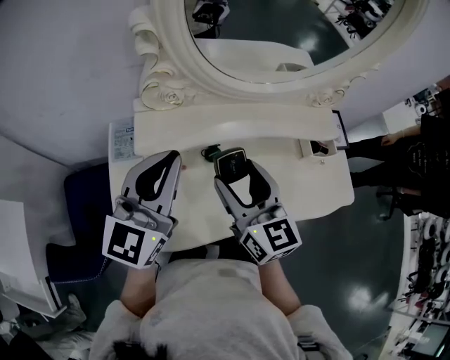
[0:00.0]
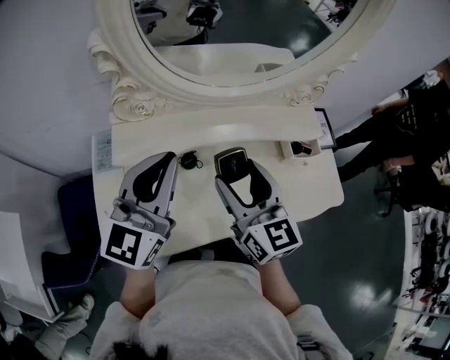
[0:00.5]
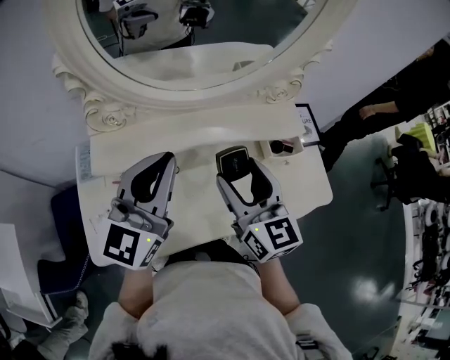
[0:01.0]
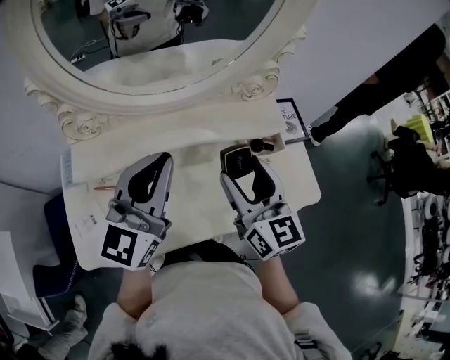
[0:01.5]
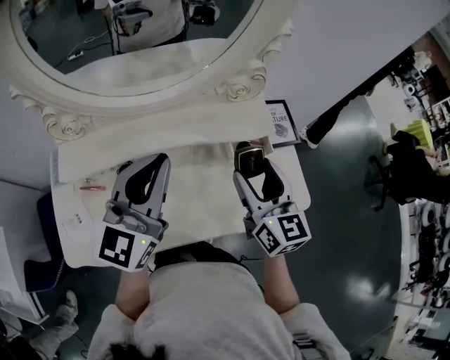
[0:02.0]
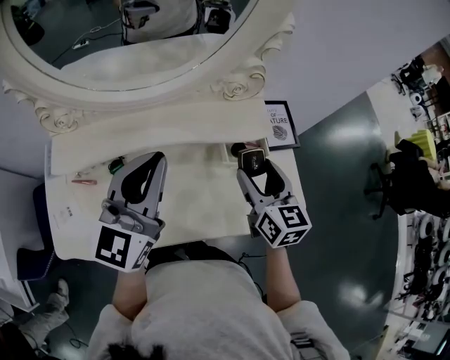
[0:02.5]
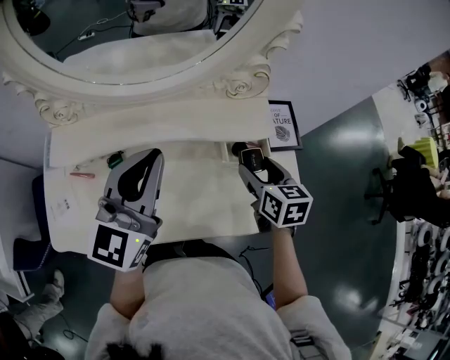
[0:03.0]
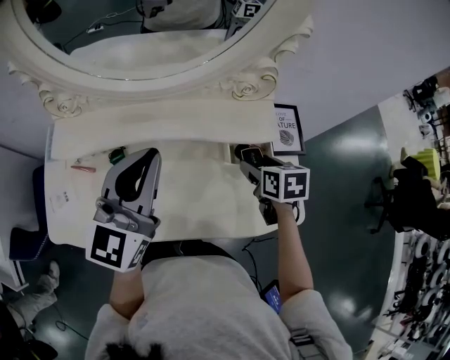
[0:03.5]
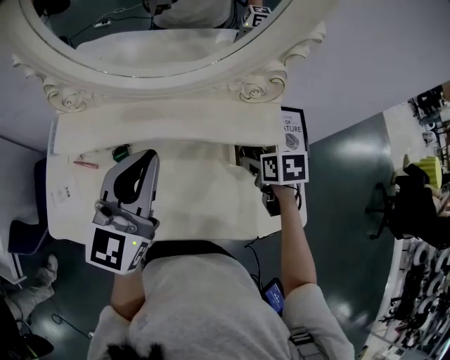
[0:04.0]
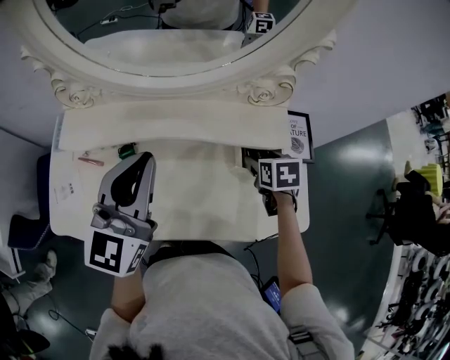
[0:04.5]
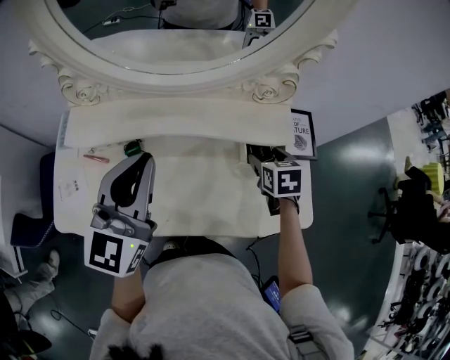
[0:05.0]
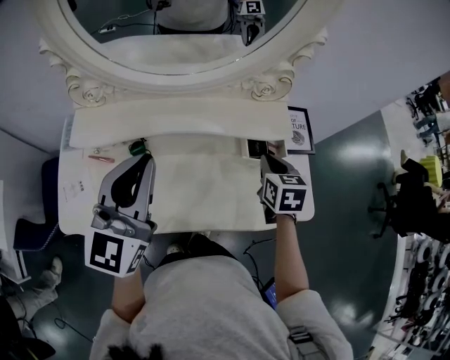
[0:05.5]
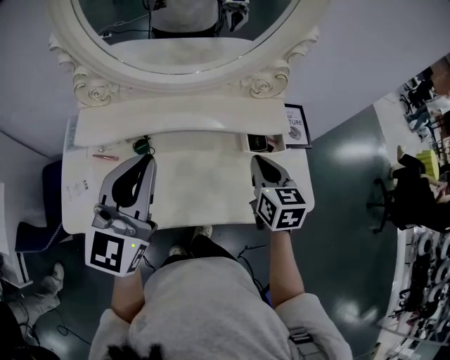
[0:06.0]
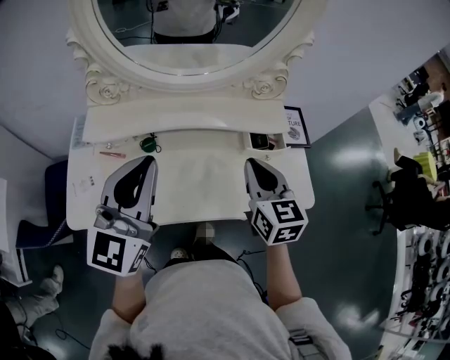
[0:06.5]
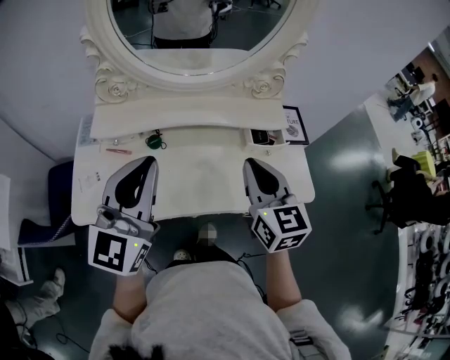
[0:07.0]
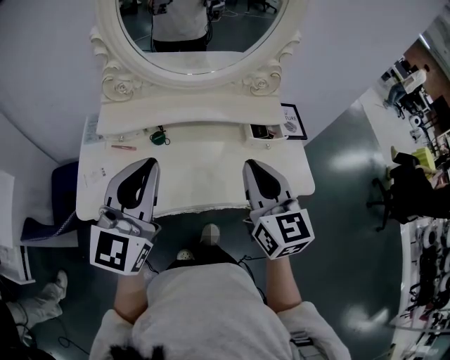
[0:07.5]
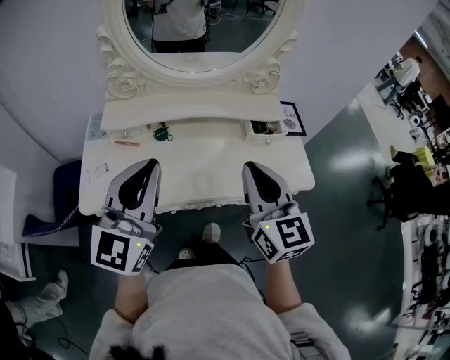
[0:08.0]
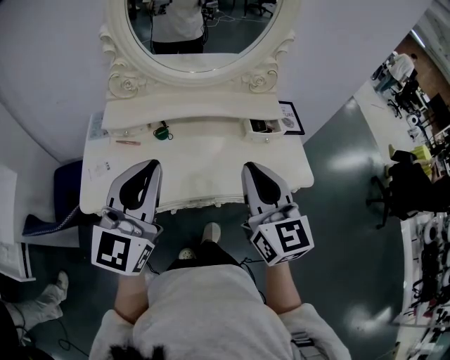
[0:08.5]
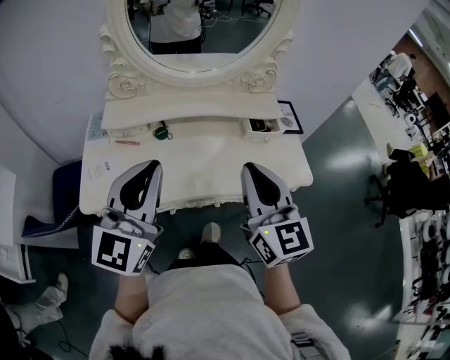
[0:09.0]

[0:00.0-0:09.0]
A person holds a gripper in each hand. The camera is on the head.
0:00.0 to 0:02.0: The two grippers go roughly 30 cm to the right.
0:02.0 to 0:04.5: The right gripper is displaced downward and forward by roughly 20 cm, and tilts its fingers roughly 50 degrees downward.
0:04.5 to 0:07.0: The right gripper heads upward, backward and to the left, covering approximately 30 cm, angles its fingers upward, by about 50 degrees, and closes, while the left gripper goes roughly 15 cm backward, to the left and upward.
0:07.0 to 0:09.0: The right gripper travels backward and upward by roughly 15 cm. The left gripper goes roughly 10 cm backward.

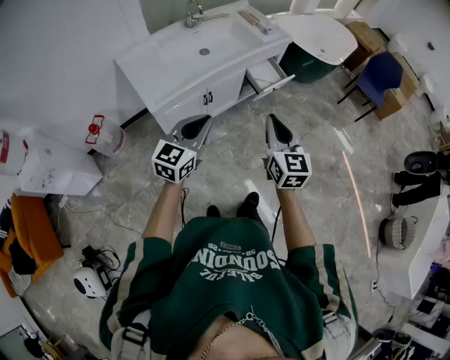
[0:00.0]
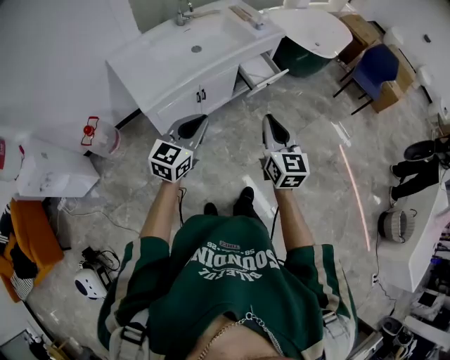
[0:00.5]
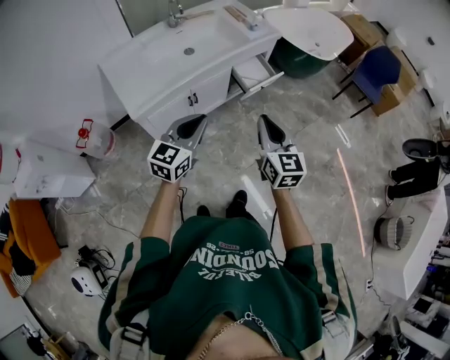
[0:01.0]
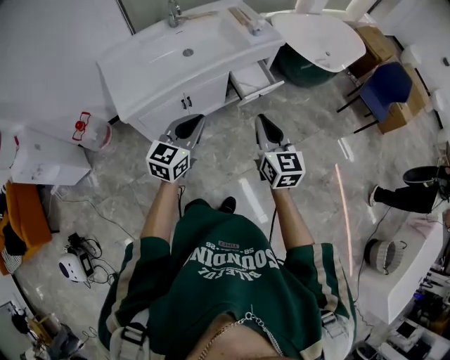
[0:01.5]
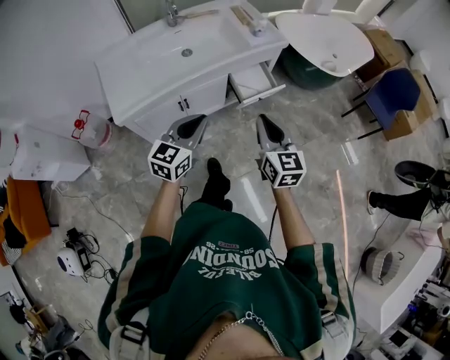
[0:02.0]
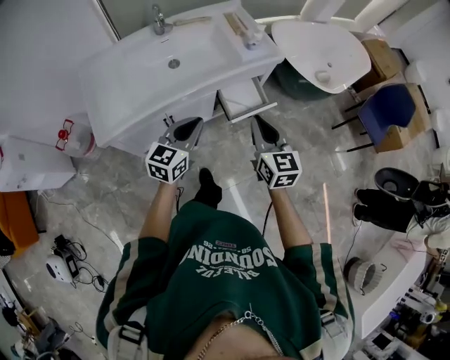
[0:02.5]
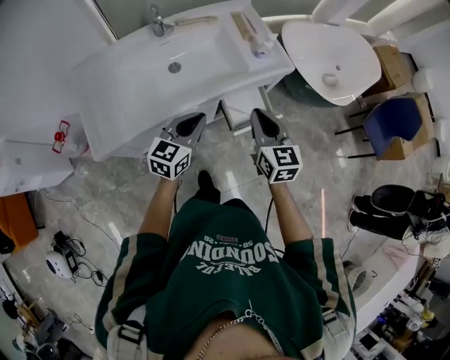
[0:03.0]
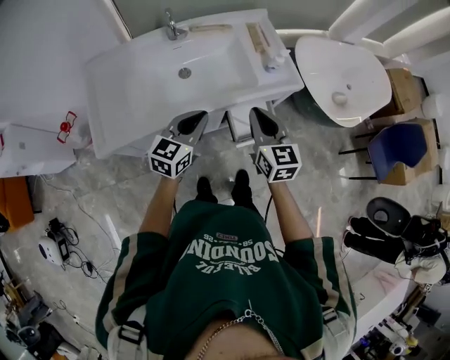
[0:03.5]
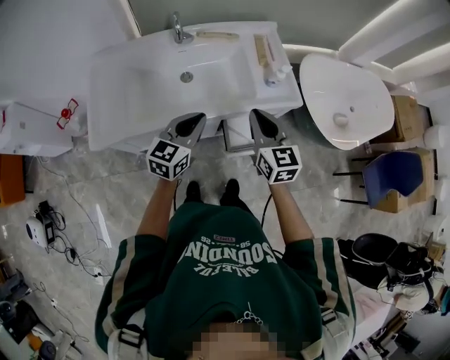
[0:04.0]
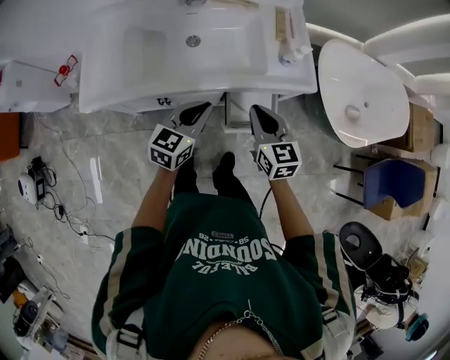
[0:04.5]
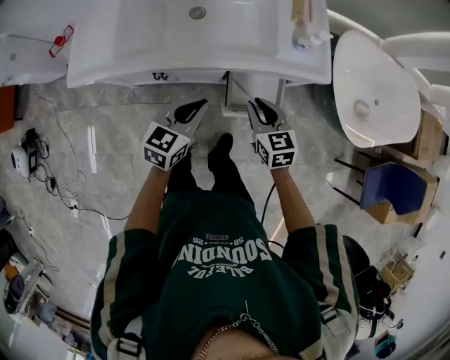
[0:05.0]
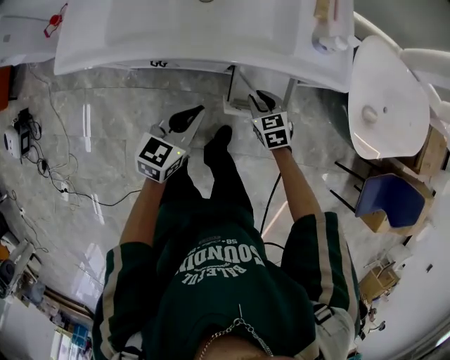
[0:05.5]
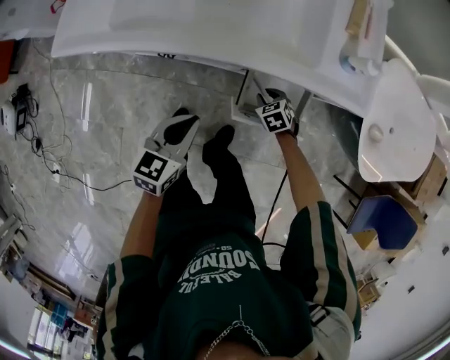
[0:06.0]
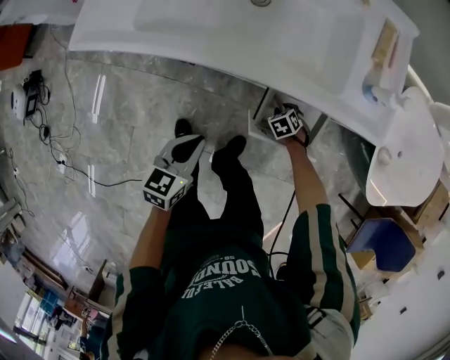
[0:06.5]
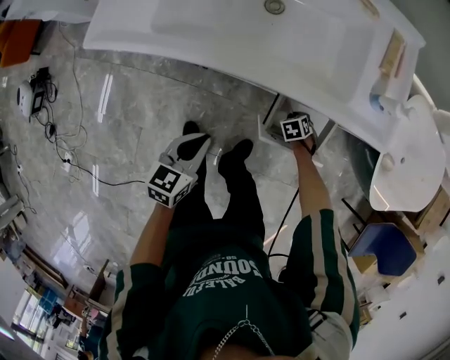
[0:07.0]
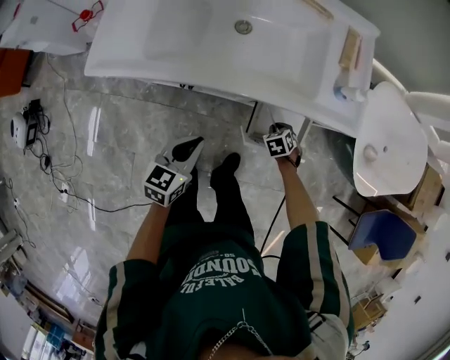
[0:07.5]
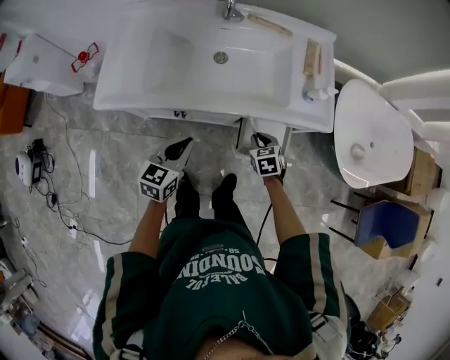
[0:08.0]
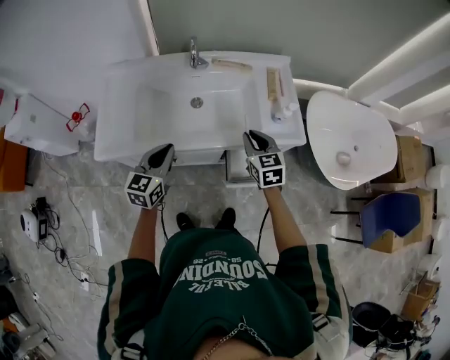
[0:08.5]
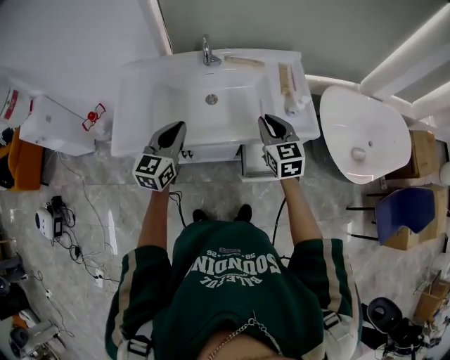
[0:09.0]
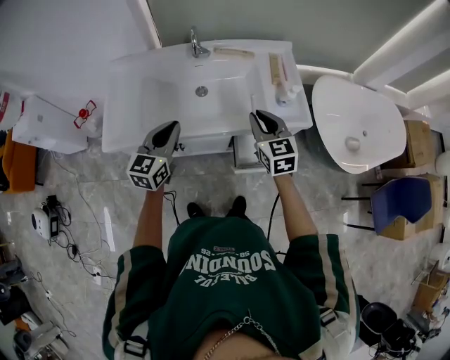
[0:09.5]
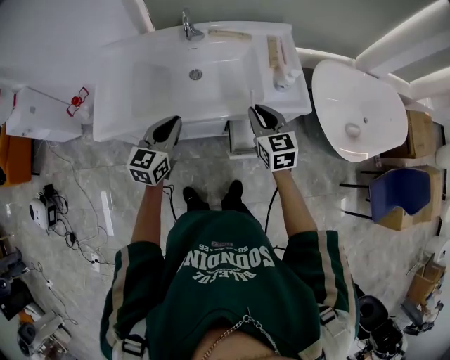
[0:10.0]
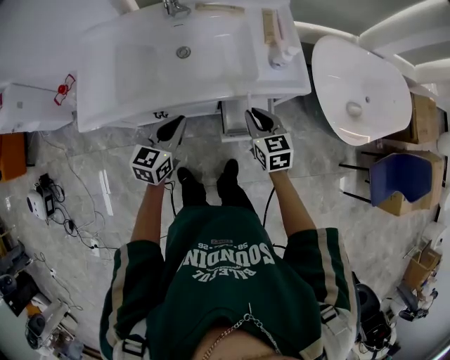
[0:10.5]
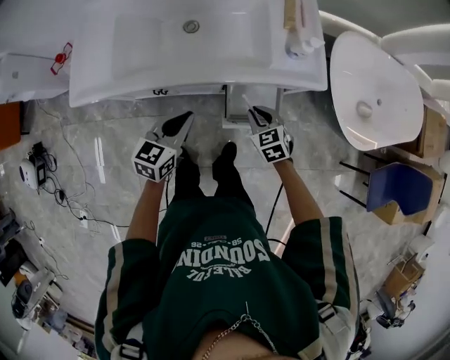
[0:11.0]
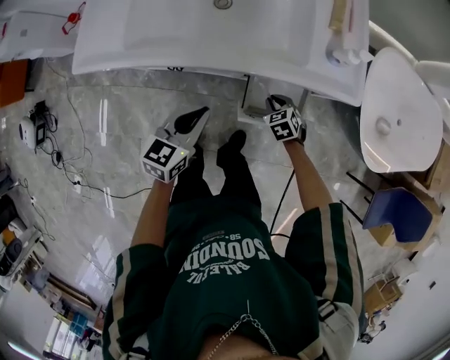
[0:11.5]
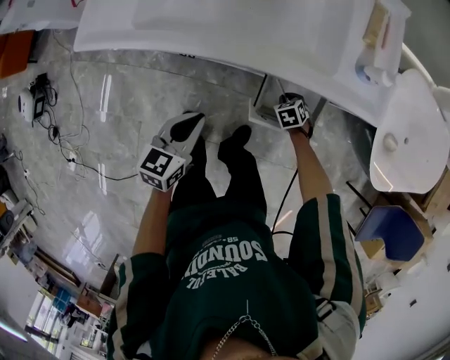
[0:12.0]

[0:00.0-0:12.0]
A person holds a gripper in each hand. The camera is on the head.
0:00.0 to 0:02.0: Both grippers move forward and to the right, some 25 cm.
0:02.0 to 0:04.0: The two grippers go some 35 cm forward. The right gripper turns by roughly 20 degrees.
0:04.0 to 0:06.0: The left gripper moves downward, roughly 25 cm, and changes its angle by roughly 30 degrees; the right gripper moves downward, approximately 50 cm, and tips its fingers downward by roughly 50 degrees.
0:06.0 to 0:08.0: The left gripper goes some 10 cm upward. The right gripper is displaced upward by approximately 20 cm, and changes its angle by about 20 degrees.
0:08.0 to 0:10.0: The left gripper moves upward and forward, roughly 15 cm. Meanwhile the right gripper goes approximately 25 cm upward, and tips its fingers upward by approximately 30 degrees.
0:10.0 to 0:12.0: The right gripper goes approximately 50 cm downward, and tilts its fingers some 50 degrees downward. Meanwhile the left gripper travels downward and backward by approximately 25 cm, and rotates about 20 degrees.

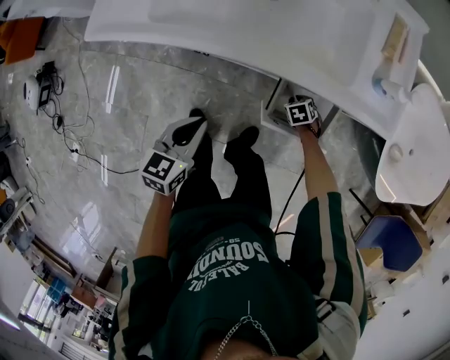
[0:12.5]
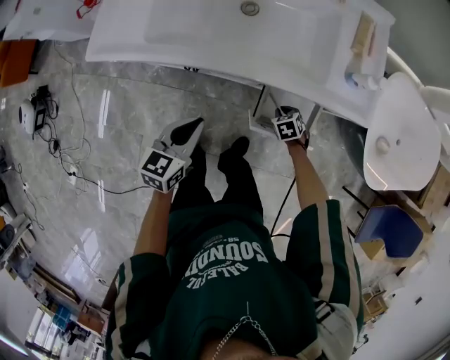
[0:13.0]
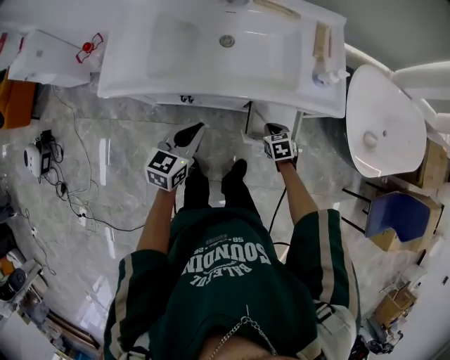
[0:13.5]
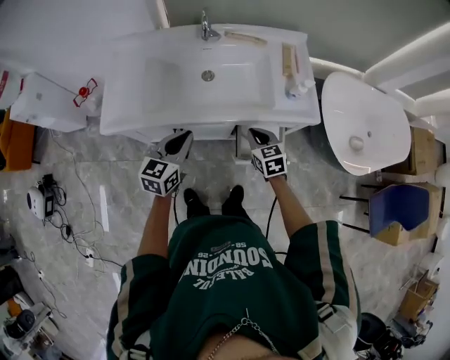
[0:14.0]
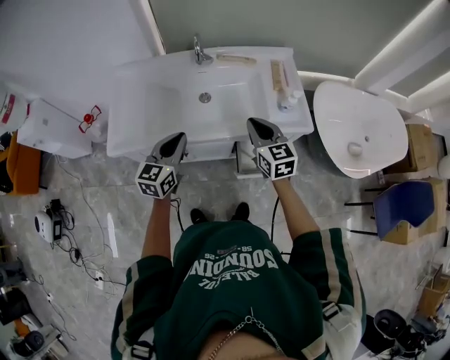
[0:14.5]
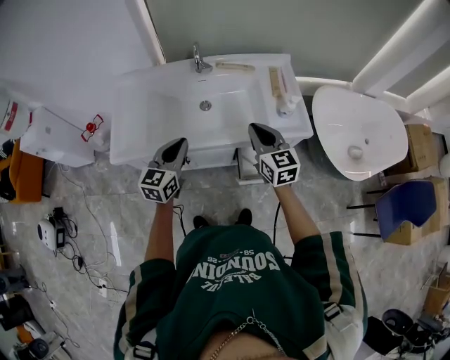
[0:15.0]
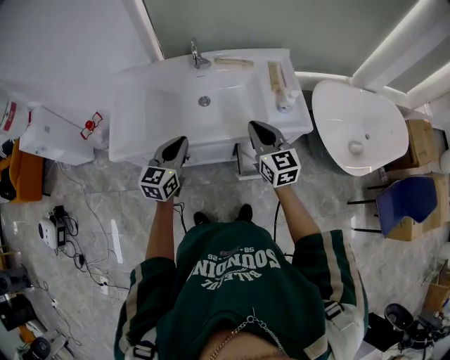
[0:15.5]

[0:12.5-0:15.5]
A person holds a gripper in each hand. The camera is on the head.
0:12.5 to 0:14.0: The right gripper goes approximately 40 cm upward, and tilts its fingers roughly 40 degrees upward. The left gripper heads upward, covering some 20 cm, and rotates approximately 20 degrees.
0:14.0 to 0:15.5: The right gripper is displaced upward by approximately 20 cm, and swivels approximately 30 degrees; the left gripper heads upward, covering some 5 cm.

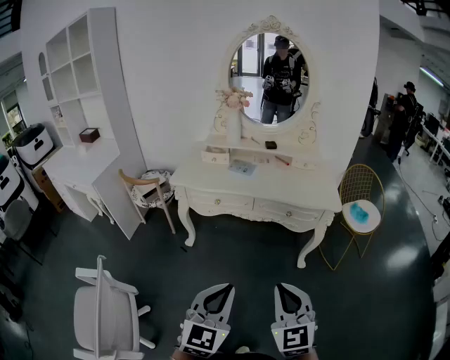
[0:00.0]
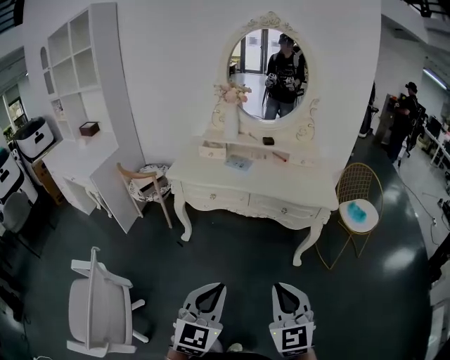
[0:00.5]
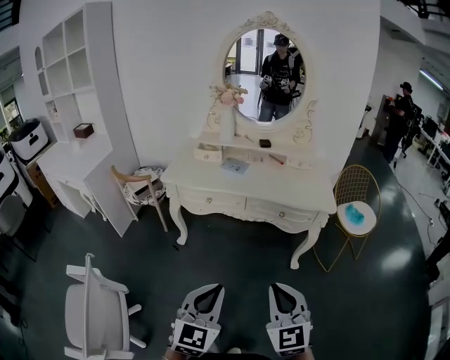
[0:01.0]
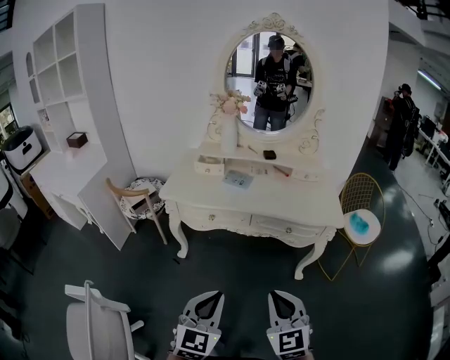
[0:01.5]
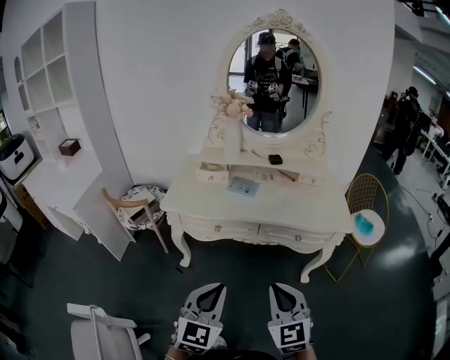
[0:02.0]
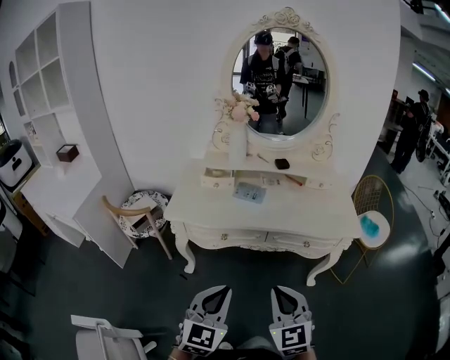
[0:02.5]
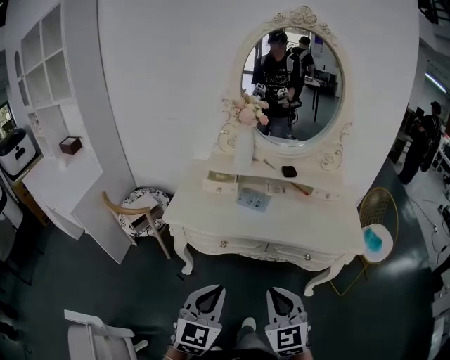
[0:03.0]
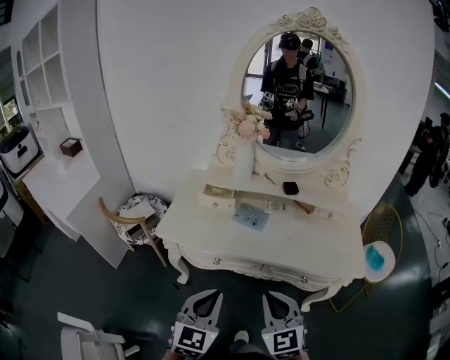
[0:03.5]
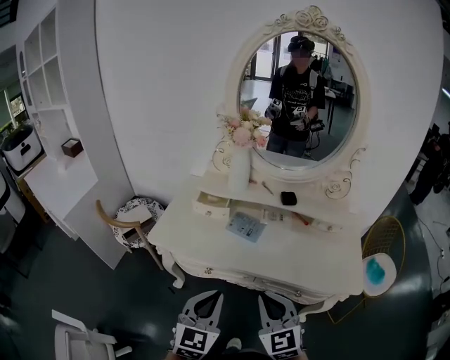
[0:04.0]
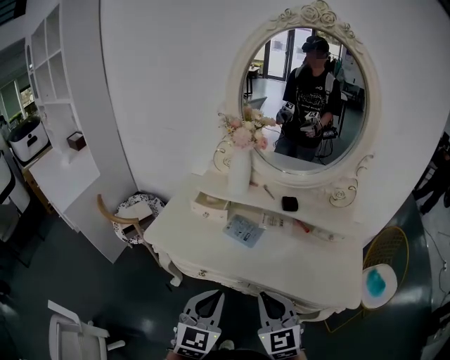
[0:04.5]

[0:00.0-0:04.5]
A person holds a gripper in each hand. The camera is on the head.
0:00.0 to 0:02.0: Both grippers travel together forward and to the left, about 20 cm.
0:02.0 to 0:04.5: Both grippers move forward, about 25 cm.
